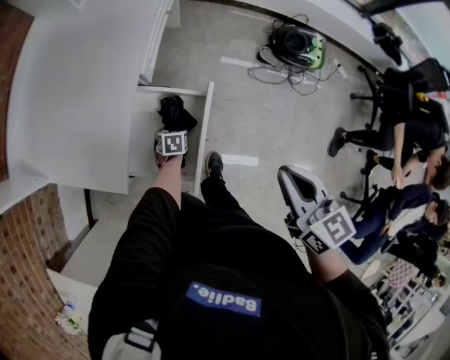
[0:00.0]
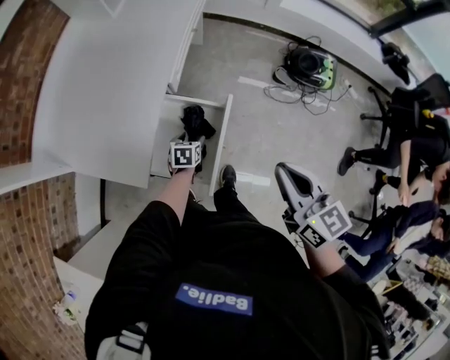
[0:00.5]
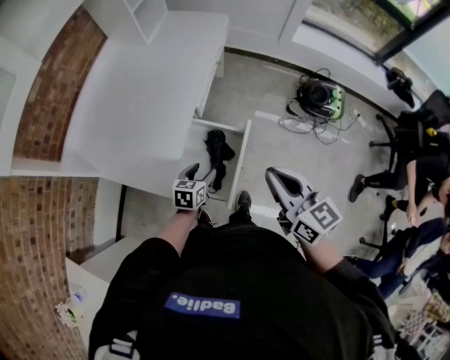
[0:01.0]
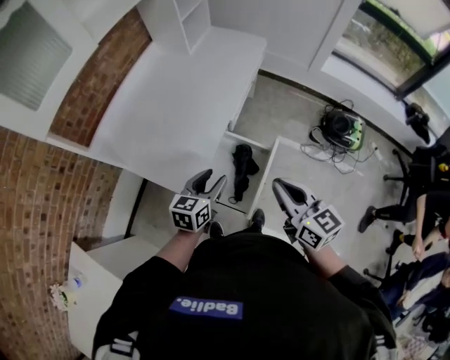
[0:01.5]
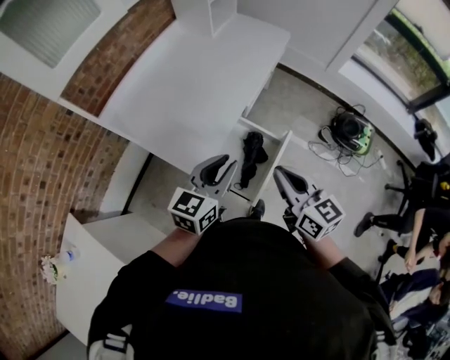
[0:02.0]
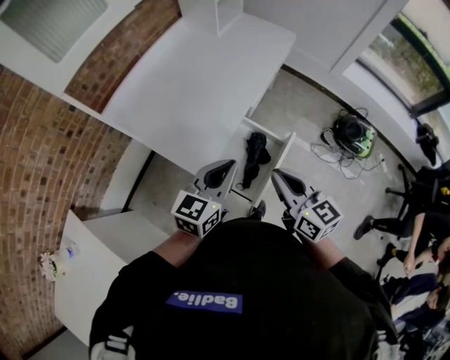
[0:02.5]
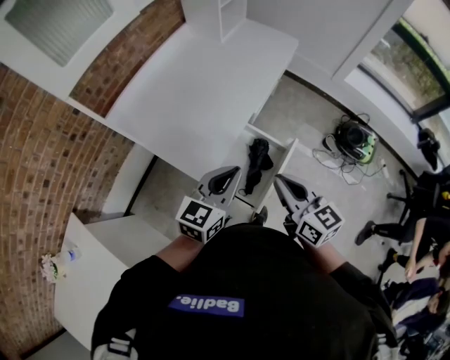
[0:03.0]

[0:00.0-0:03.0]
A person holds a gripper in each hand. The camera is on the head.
0:00.0 to 0:01.5: The left gripper travels upward by about 35 cm, and tilts its fingers roughly 40 degrees upward; the right gripper moves to the left and upward, approximately 15 cm, and rotates about 20 degrees.
0:01.5 to 0:03.0: The right gripper shifts some 5 cm to the left; the left gripper is displaced upward by approximately 10 cm, and closes.

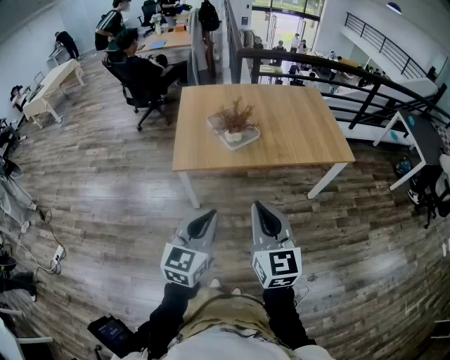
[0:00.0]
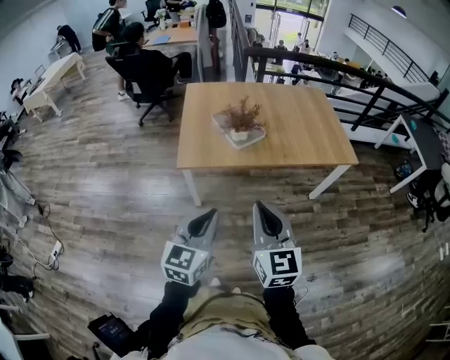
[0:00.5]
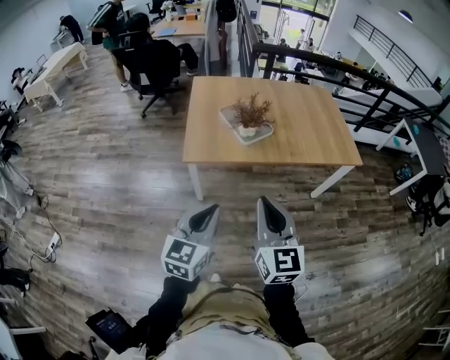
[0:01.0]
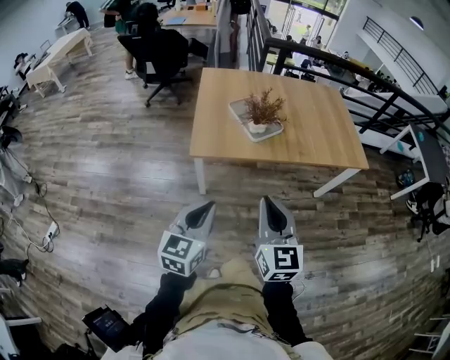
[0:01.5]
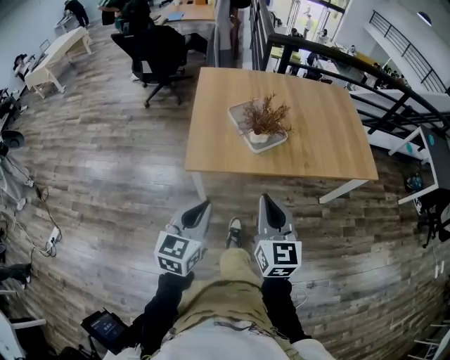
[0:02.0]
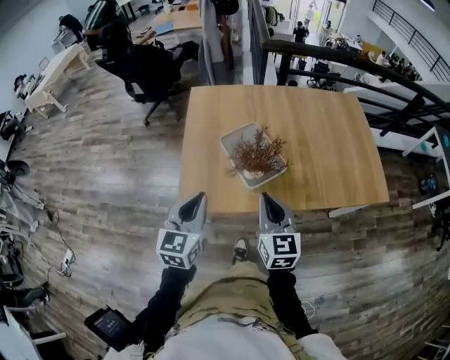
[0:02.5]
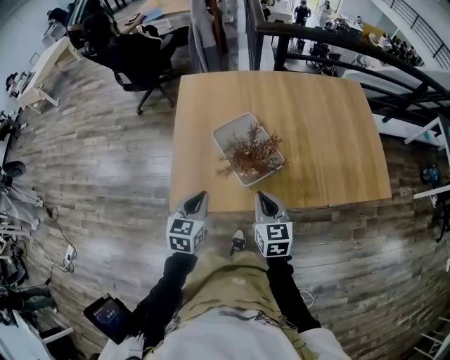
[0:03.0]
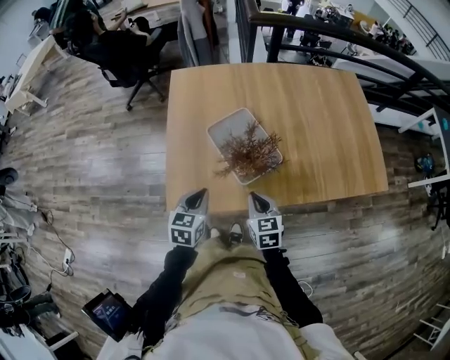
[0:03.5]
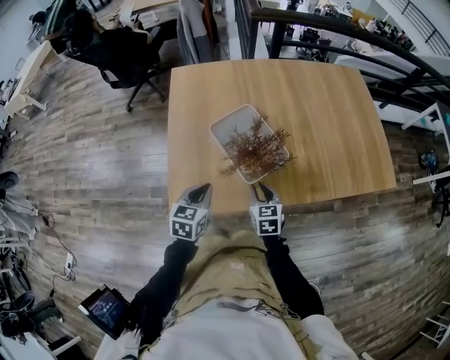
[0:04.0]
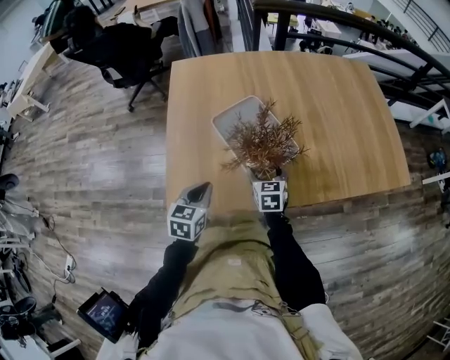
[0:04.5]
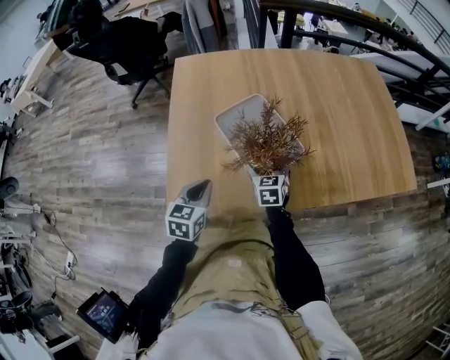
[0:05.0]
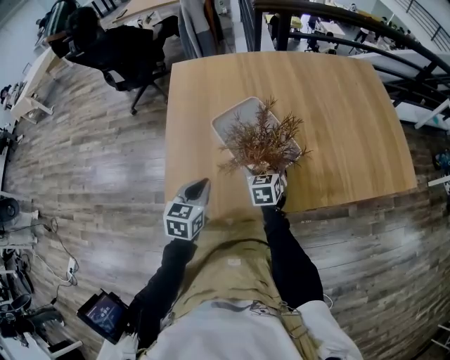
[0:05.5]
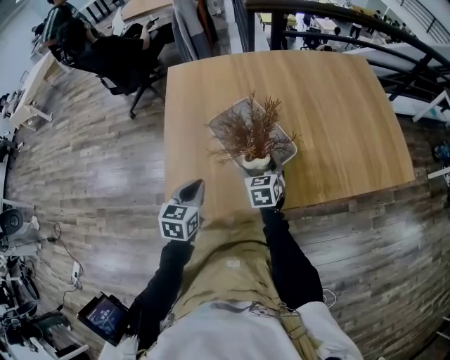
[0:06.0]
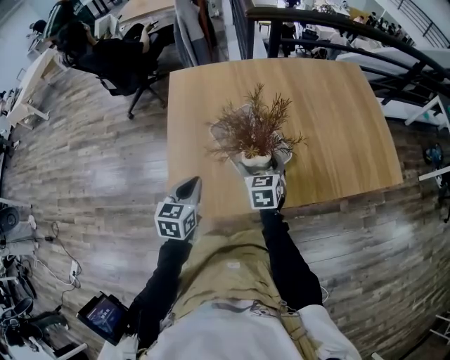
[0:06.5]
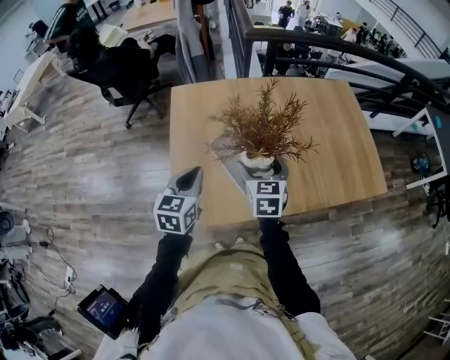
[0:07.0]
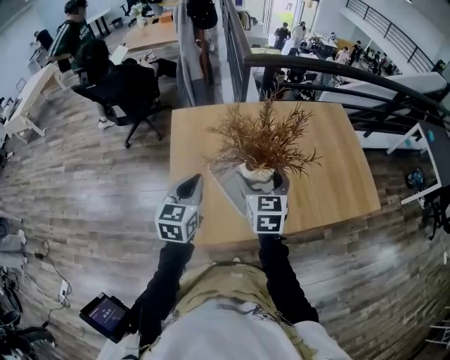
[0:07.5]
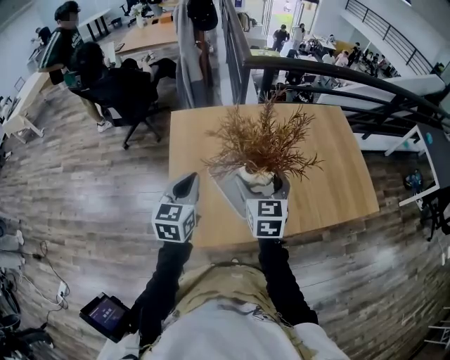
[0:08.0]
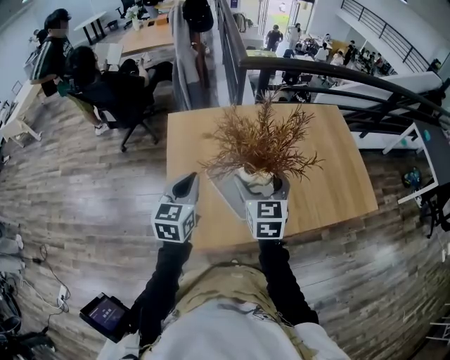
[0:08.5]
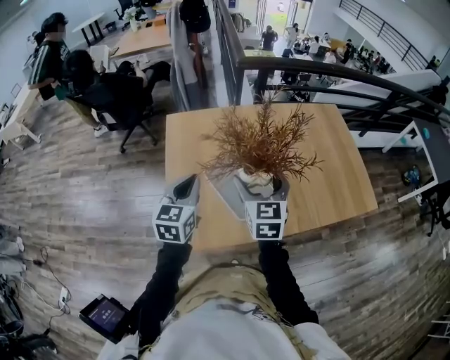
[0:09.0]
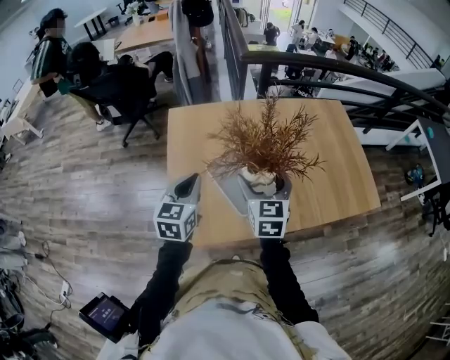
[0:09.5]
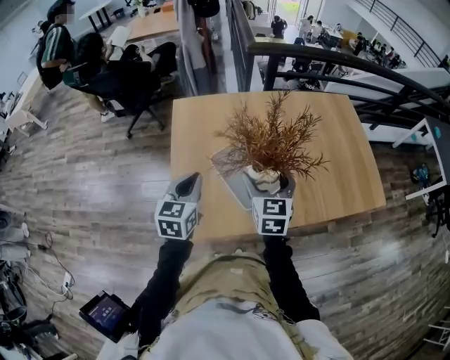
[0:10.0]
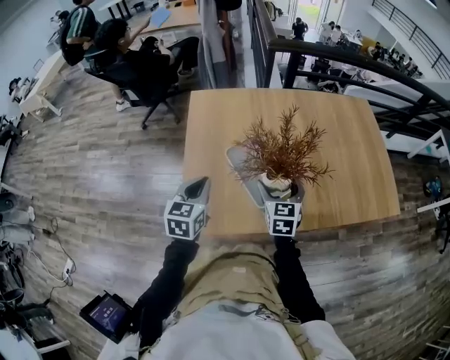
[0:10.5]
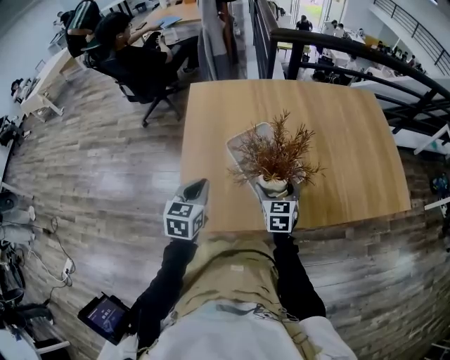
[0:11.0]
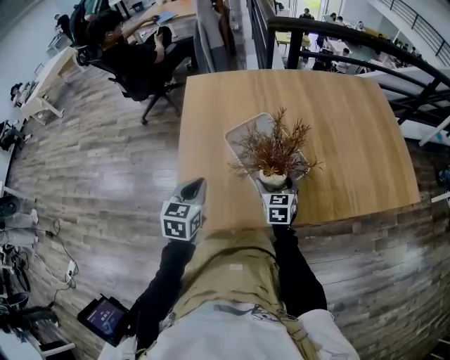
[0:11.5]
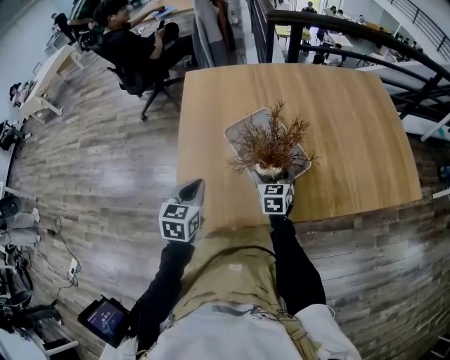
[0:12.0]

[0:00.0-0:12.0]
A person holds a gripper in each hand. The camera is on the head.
0:00.0 to 0:02.0: The two grippers go roughly 25 cm forward, to the left and downward.
0:02.0 to 0:04.0: The two grippers go some 50 cm forward and downward. The right gripper changes its angle by roughly 30 degrees.
0:04.0 to 0:06.0: The right gripper shifts approximately 10 cm forward and downward, and opens its fingers. Meanwhile the left gripper heads downward, covering approximately 5 cm.
0:06.0 to 0:08.0: The two grippers go approximately 30 cm upward.
0:08.0 to 0:10.0: The grippers move only a little.
0:10.0 to 0:12.0: The left gripper travels downward by about 25 cm, while the right gripper goes roughly 35 cm downward.

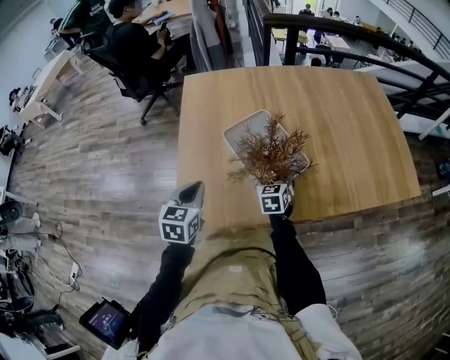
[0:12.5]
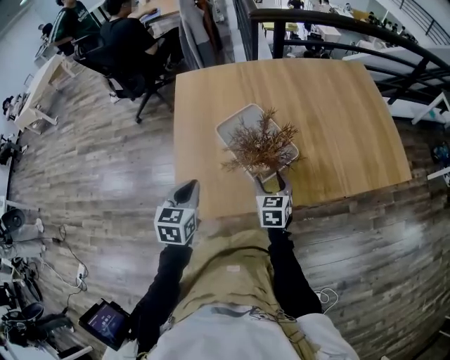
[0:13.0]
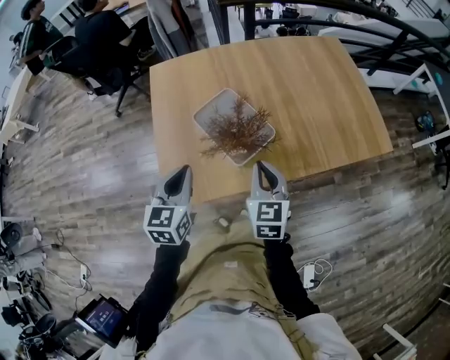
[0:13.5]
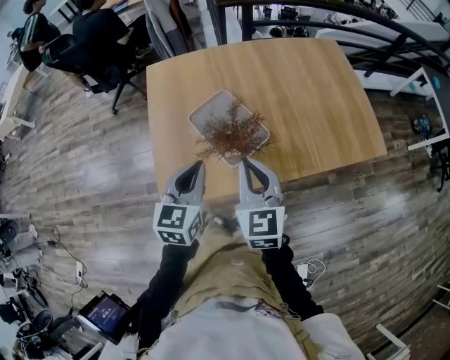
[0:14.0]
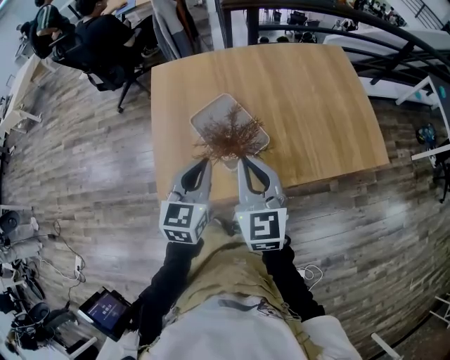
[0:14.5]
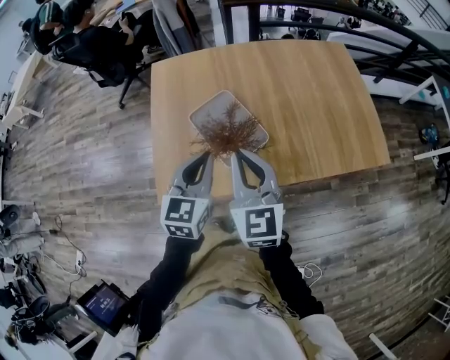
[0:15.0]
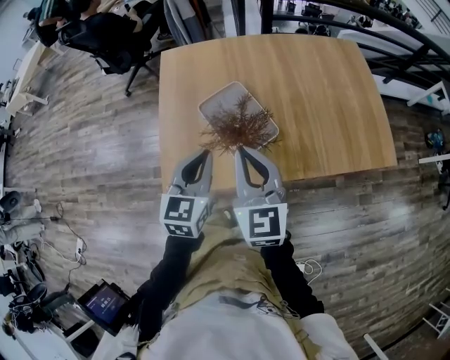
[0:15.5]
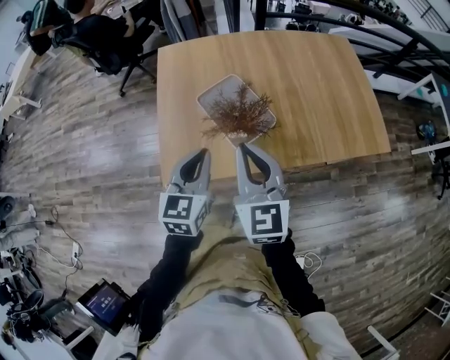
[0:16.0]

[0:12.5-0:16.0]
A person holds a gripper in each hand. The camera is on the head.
0:12.5 to 0:14.5: The left gripper goes approximately 25 cm upward and to the right; the right gripper heads upward, covering some 40 cm, changes its angle by roughly 20 degrees, and closes up.
0:14.5 to 0:16.0: The left gripper moves about 5 cm.

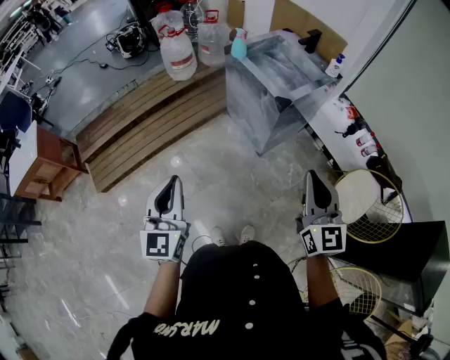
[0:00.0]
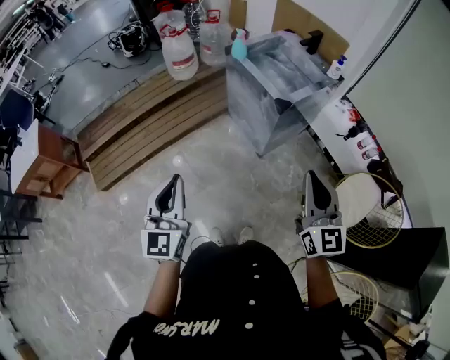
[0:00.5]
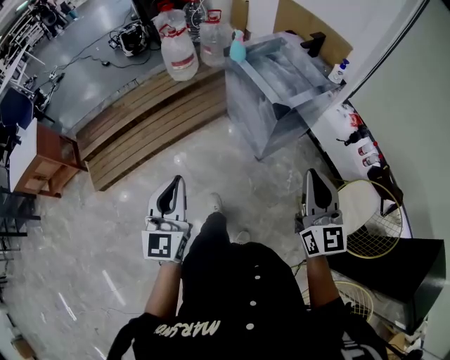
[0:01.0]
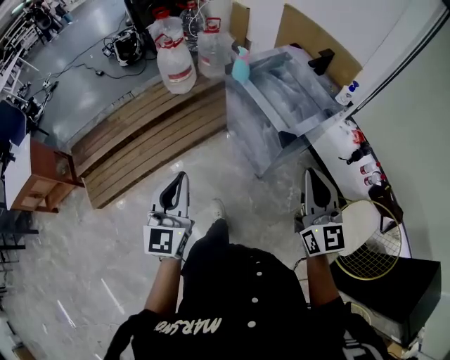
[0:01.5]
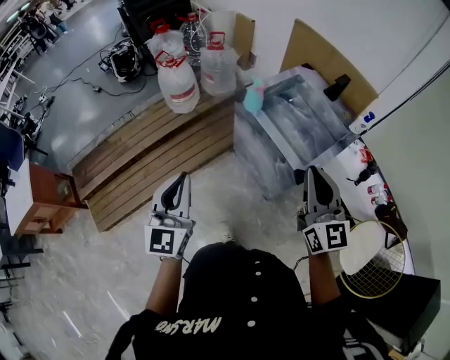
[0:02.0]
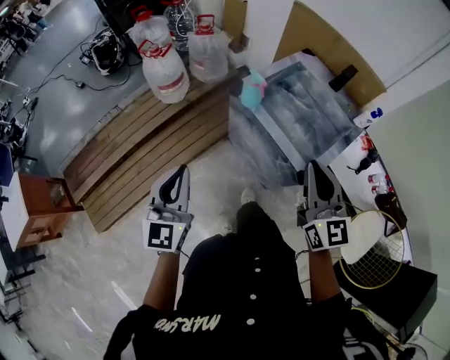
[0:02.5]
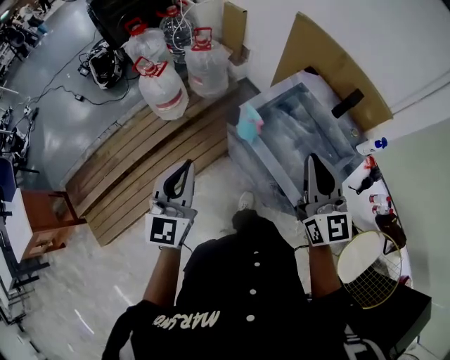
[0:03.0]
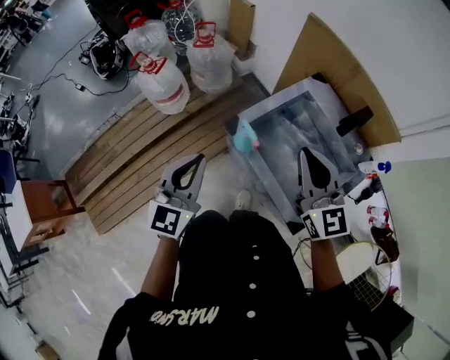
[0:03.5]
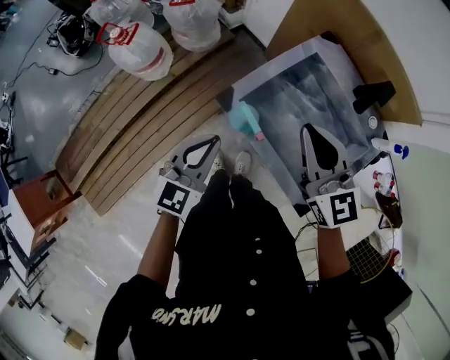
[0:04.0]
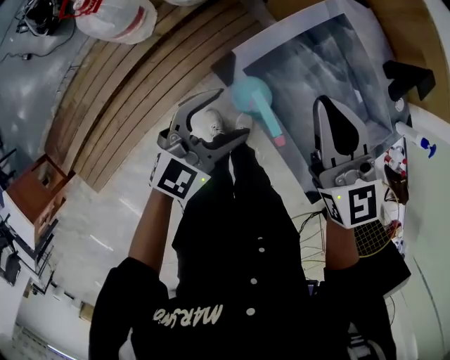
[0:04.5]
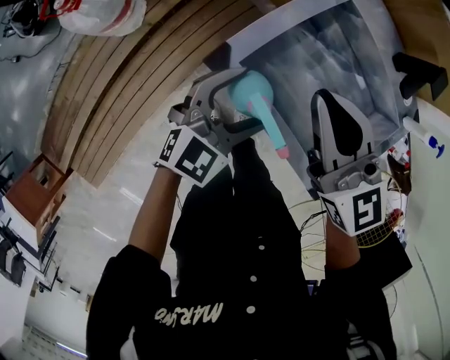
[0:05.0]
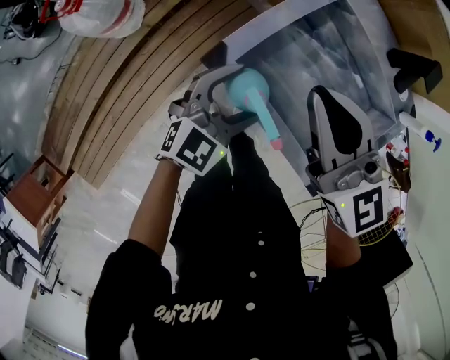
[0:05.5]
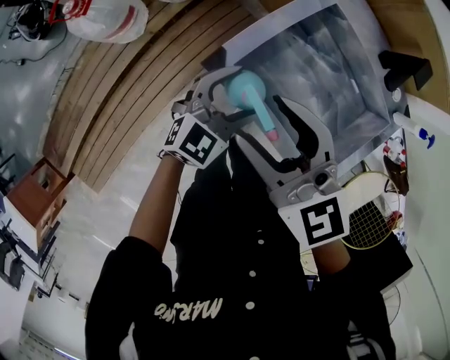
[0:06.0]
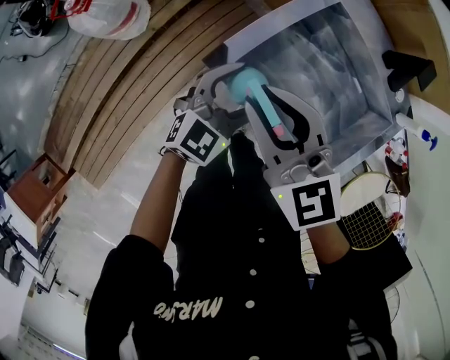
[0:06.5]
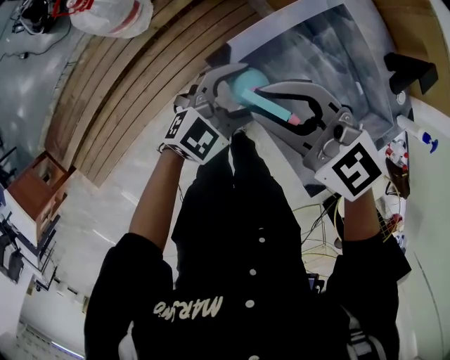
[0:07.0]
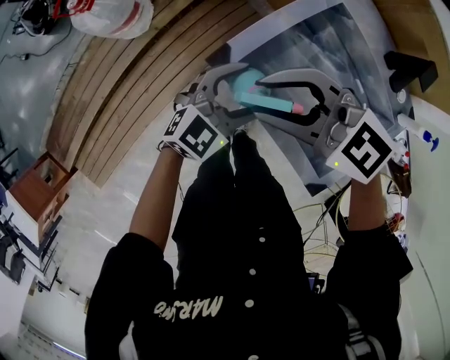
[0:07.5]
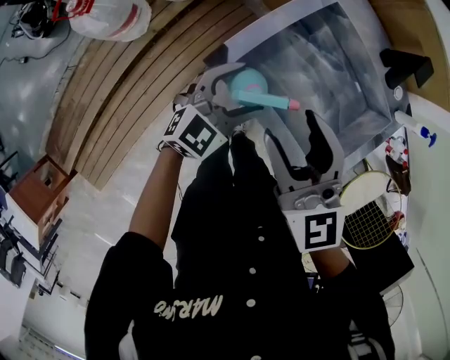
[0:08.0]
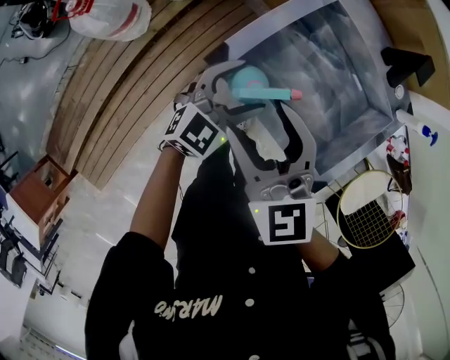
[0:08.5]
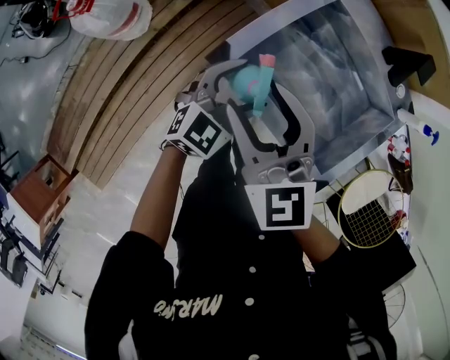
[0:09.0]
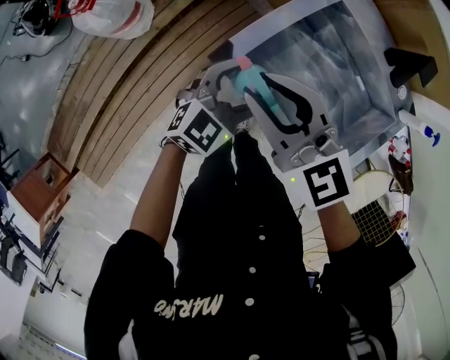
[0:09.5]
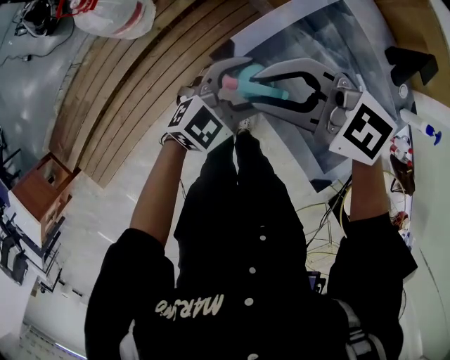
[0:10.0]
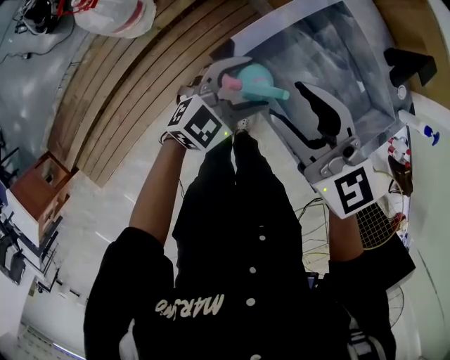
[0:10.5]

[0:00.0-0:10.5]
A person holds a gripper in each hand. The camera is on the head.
0:00.0 to 0:02.0: The two grippers go roughly 35 cm forward.
0:02.0 to 0:04.0: The left gripper moves forward and downward, about 40 cm, and turns by about 30 degrees, while the right gripper moves forward, approximately 35 cm.
0:04.0 to 0:06.5: The left gripper is displaced downward, forward and to the right by approximately 15 cm, rotates some 20 degrees, and opens its fingers. The right gripper heads to the left and downward, covering approximately 15 cm, and opens, then closes once more.
0:06.5 to 0:08.5: The right gripper opens its fingers.
0:08.5 to 0:10.5: The right gripper turns by approximately 20 degrees, and closes, then reopens.
